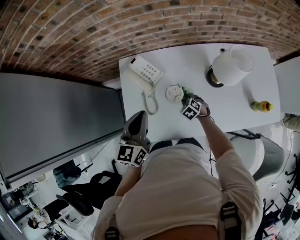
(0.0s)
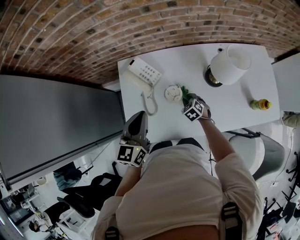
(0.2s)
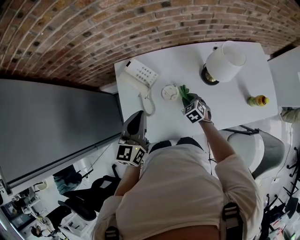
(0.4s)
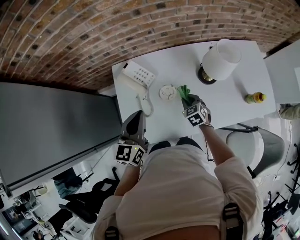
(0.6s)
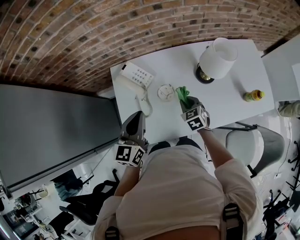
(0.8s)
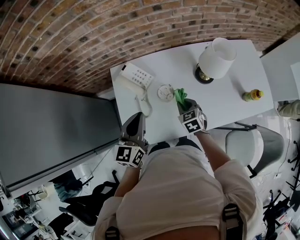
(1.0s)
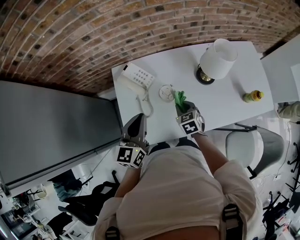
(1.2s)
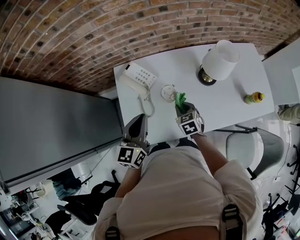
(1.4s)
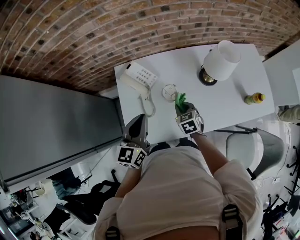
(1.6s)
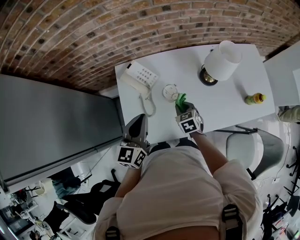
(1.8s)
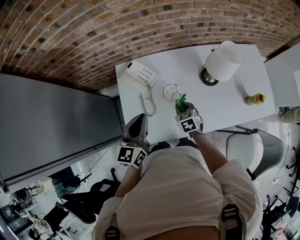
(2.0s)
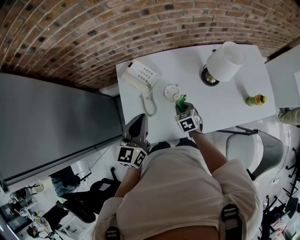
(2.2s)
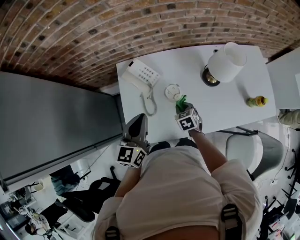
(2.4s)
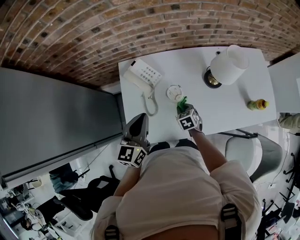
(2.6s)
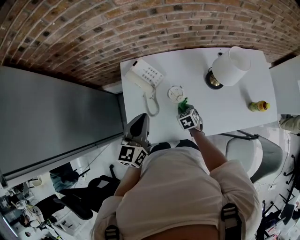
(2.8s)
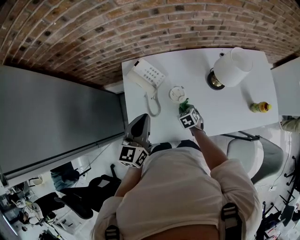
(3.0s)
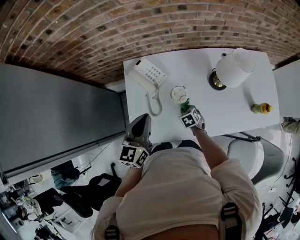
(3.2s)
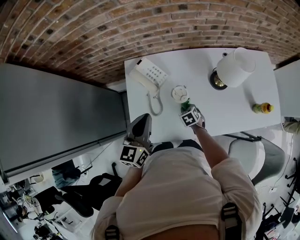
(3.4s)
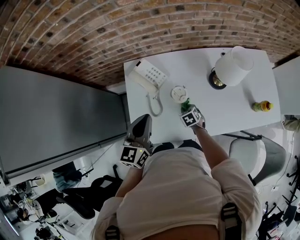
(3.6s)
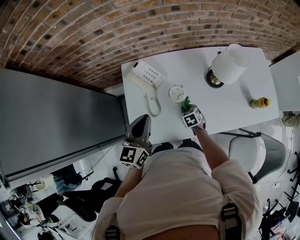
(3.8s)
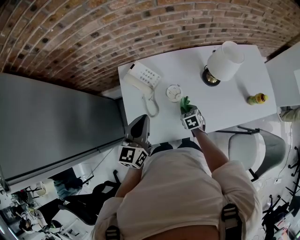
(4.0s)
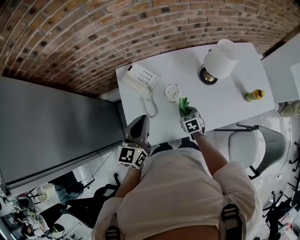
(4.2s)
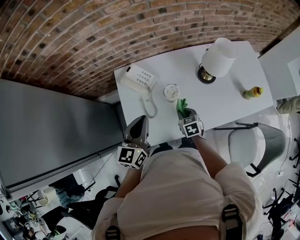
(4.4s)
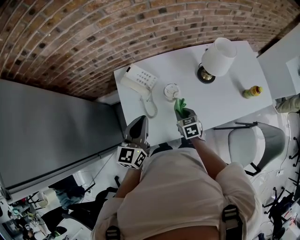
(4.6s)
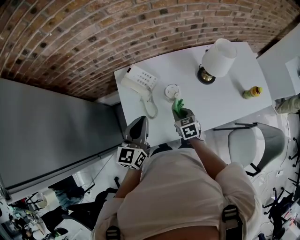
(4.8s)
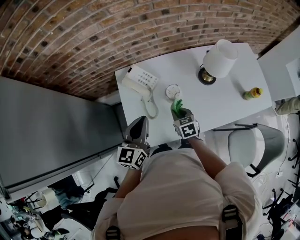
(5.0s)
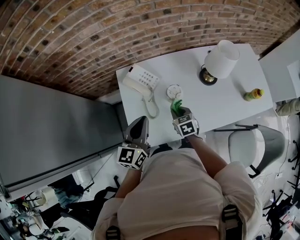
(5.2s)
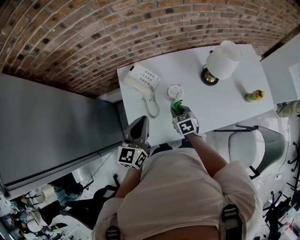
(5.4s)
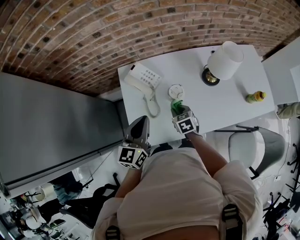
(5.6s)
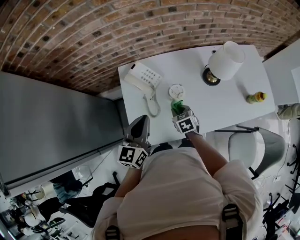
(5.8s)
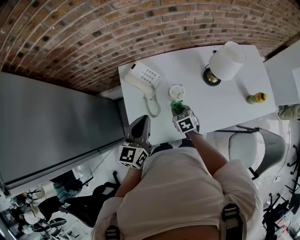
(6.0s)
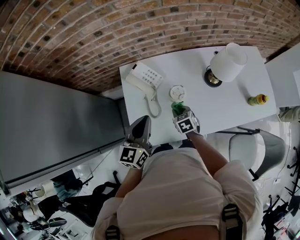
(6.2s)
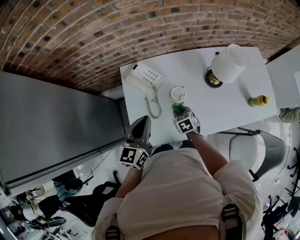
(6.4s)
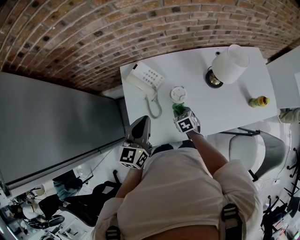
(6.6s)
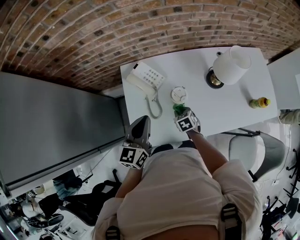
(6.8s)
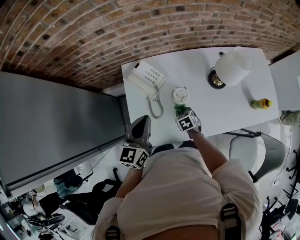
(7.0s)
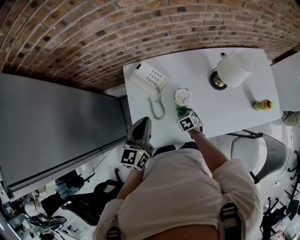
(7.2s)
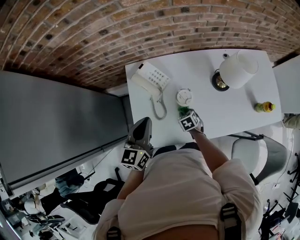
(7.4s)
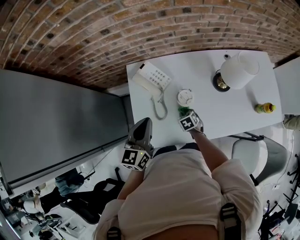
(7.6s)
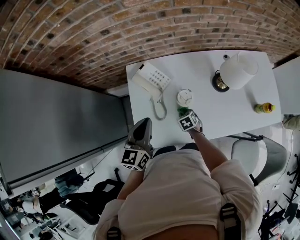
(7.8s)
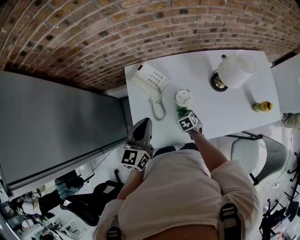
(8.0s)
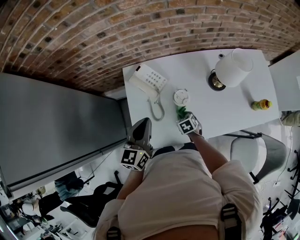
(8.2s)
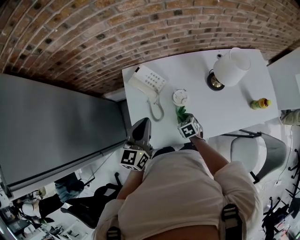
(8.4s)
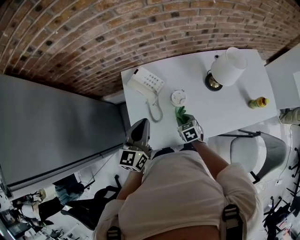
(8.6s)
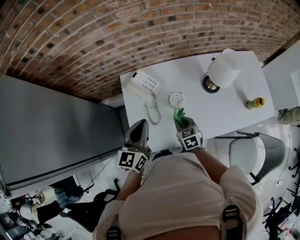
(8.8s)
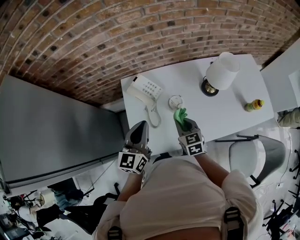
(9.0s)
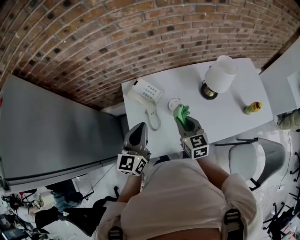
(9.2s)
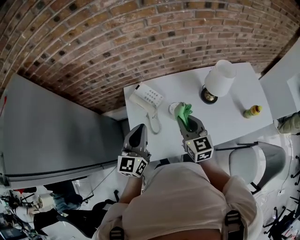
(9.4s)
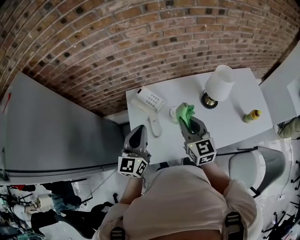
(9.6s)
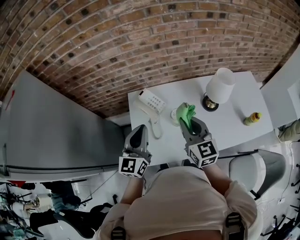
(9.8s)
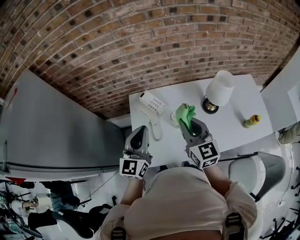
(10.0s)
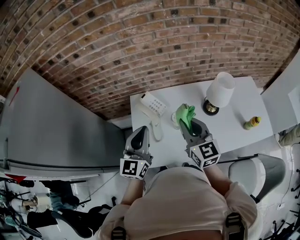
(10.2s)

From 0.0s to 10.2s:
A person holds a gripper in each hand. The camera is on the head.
From 0.0s to 1.4s: The right gripper is displaced upward by approximately 15 cm, and swivels some 30 degrees.
From 1.4s to 3.0s: The right gripper travels downward by some 10 cm.
From 3.0s to 4.4s: The right gripper heads upward, covering about 10 cm.
From 4.4s to 5.8s: The right gripper changes place by about 5 cm.
From 5.8s to 7.2s: The right gripper goes about 10 cm downward.
From 7.2s to 8.8s: The right gripper is displaced upward by about 10 cm.
From 8.8s to 10.2s: The right gripper travels upward by approximately 25 cm, and tips its fingers upward by some 40 degrees; the left gripper shifts about 10 cm upward.

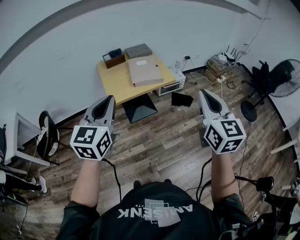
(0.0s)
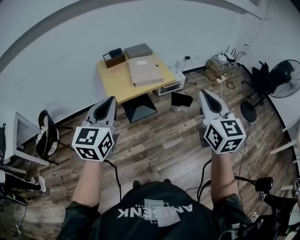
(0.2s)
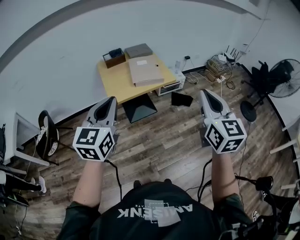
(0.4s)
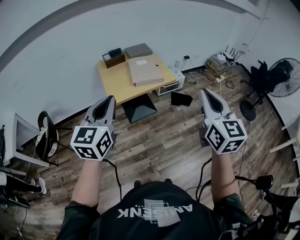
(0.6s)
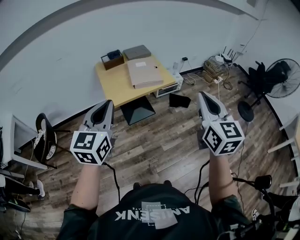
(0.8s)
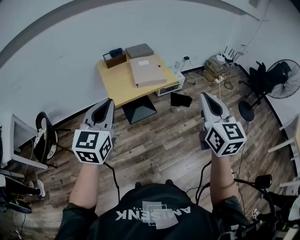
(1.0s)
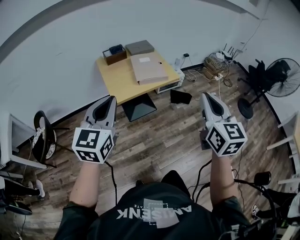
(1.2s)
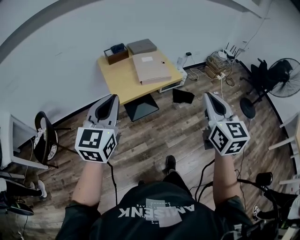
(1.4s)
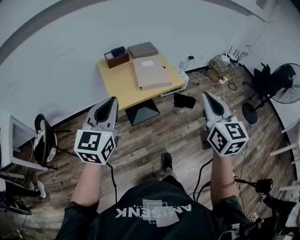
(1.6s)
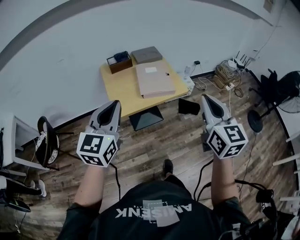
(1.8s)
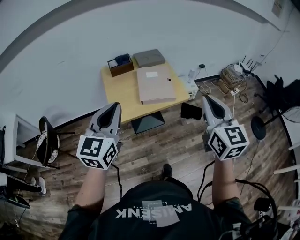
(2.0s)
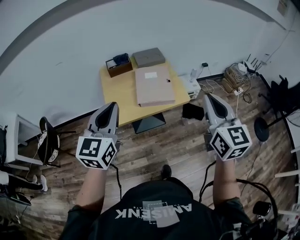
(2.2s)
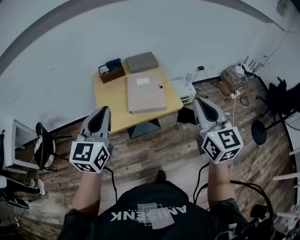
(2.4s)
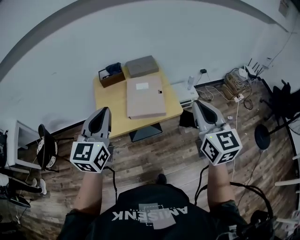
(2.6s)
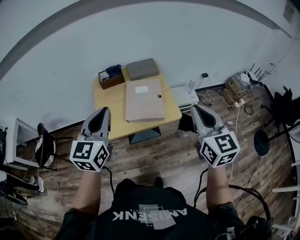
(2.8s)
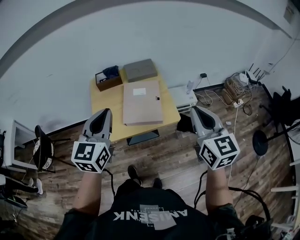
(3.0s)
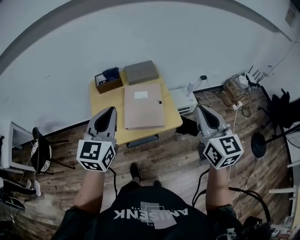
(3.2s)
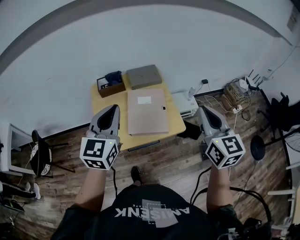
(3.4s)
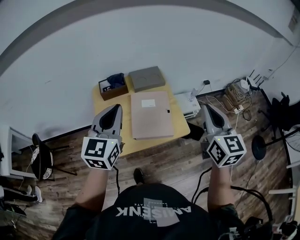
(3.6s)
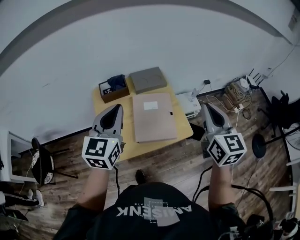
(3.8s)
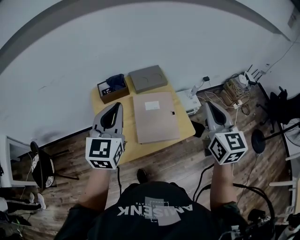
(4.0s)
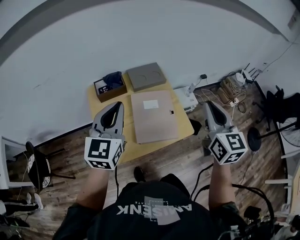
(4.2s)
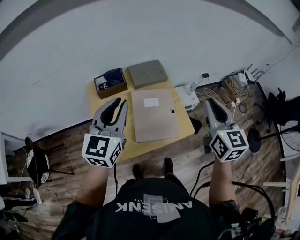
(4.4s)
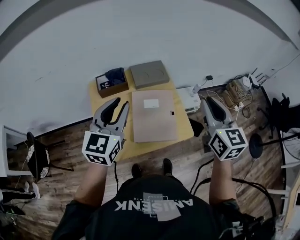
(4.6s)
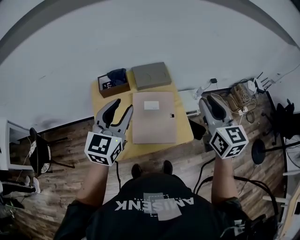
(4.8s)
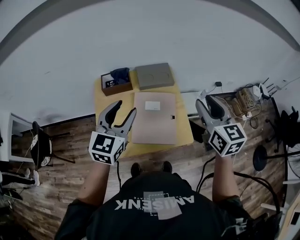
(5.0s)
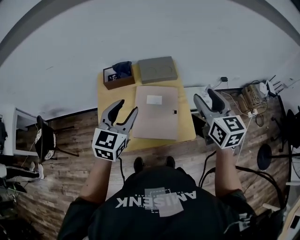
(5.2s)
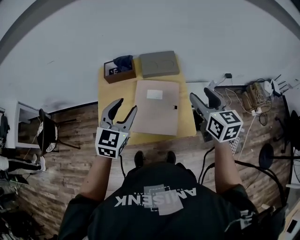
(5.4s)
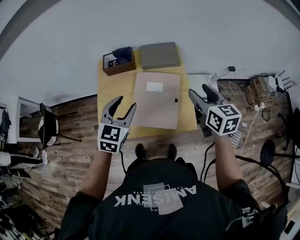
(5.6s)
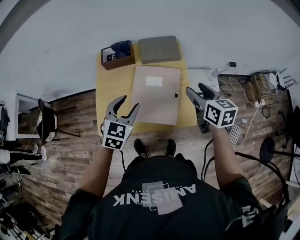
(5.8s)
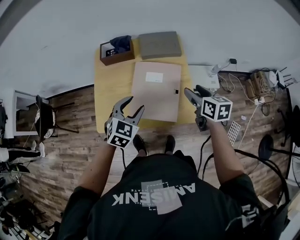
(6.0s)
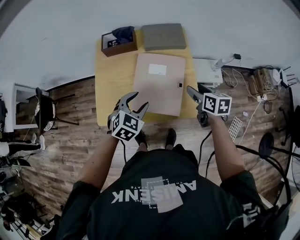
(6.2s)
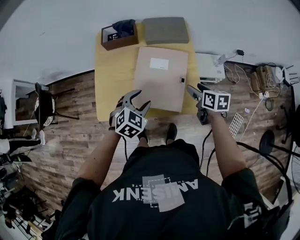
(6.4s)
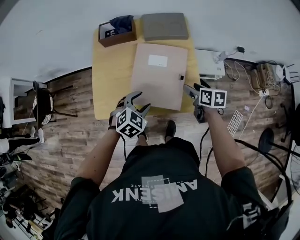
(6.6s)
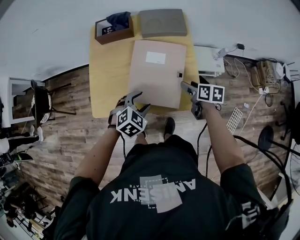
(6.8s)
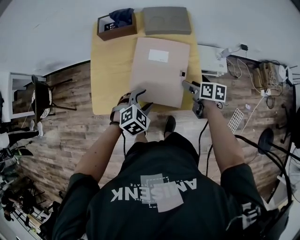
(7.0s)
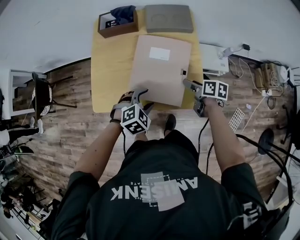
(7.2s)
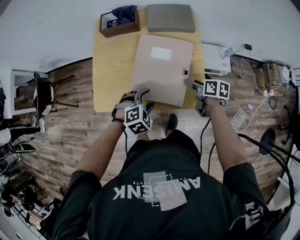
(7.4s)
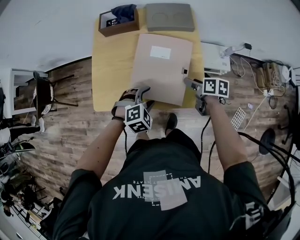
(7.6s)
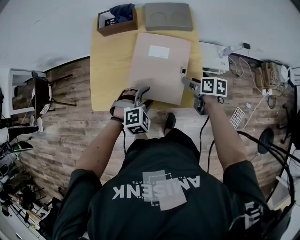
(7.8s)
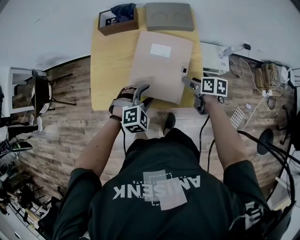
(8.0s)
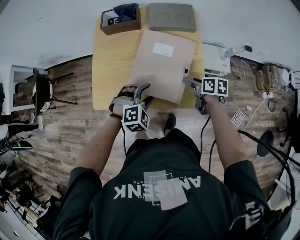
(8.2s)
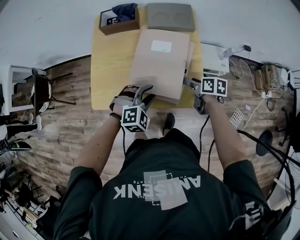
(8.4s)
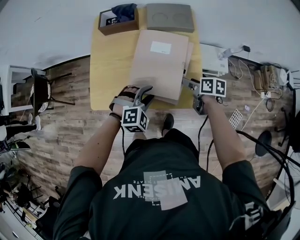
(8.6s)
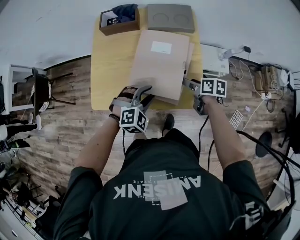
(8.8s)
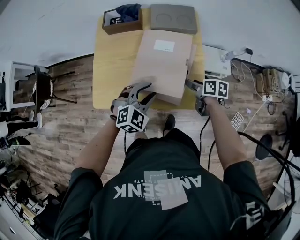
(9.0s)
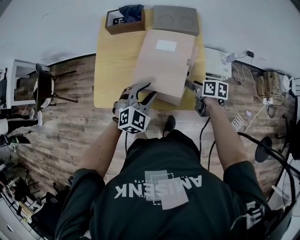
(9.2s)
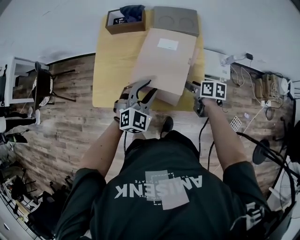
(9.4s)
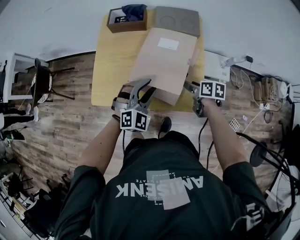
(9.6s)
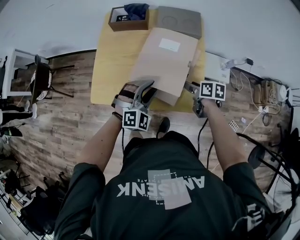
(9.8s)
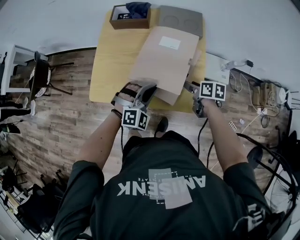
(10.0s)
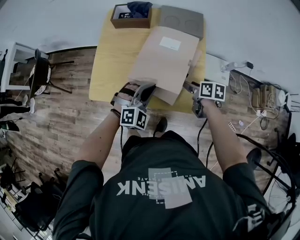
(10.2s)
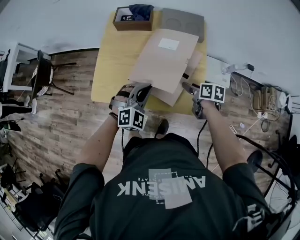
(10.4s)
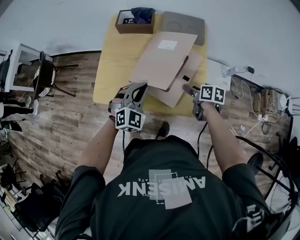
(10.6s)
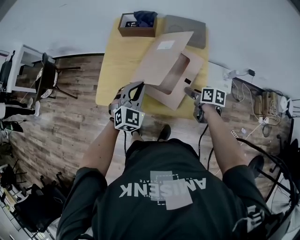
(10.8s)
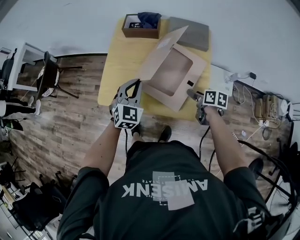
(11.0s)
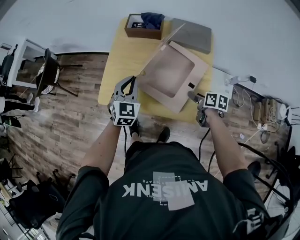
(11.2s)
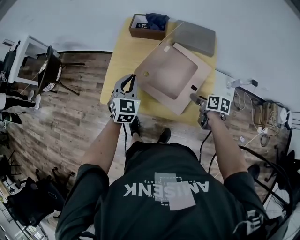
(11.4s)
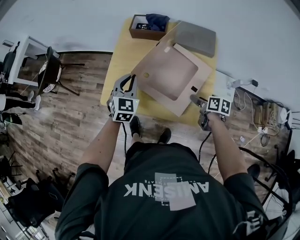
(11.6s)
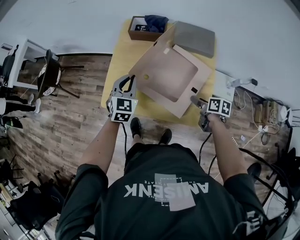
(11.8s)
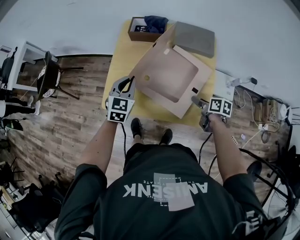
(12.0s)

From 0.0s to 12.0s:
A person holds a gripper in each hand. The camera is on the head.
From 0.0s to 1.6s: The grippers both shift forward and to the left by approximately 10 cm.
From 1.6s to 3.0s: Both grippers move forward and to the right, roughly 30 cm.
From 3.0s to 4.4s: The grippers both shift forward and to the left by approximately 20 cm.
From 4.4s to 6.0s: The left gripper is displaced downward and to the right by roughly 25 cm, points its fingers some 30 degrees further downward, and opens. The right gripper heads downward and forward, covering approximately 25 cm, rotates about 40 degrees, and opens its fingers.
From 6.0s to 7.6s: Both grippers move downward, roughly 15 cm. The left gripper turns by roughly 30 degrees. The right gripper turns by about 30 degrees.
From 7.6s to 9.0s: The left gripper travels upward by roughly 5 cm, and changes its angle by about 20 degrees.
From 9.0s to 10.4s: The left gripper closes up.
From 10.4s to 12.0s: The left gripper shifts approximately 15 cm forward and to the left, and rotates around the line of its fingers by some 40 degrees, counterclockwise from behind.

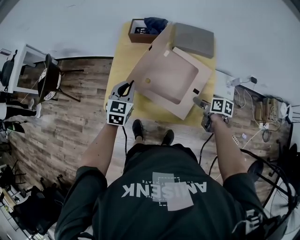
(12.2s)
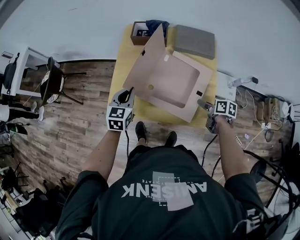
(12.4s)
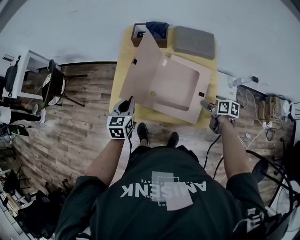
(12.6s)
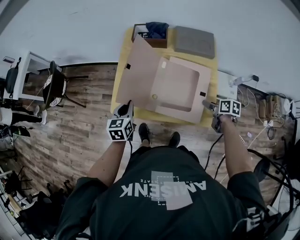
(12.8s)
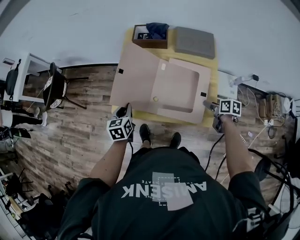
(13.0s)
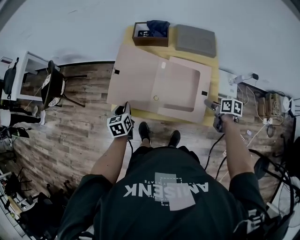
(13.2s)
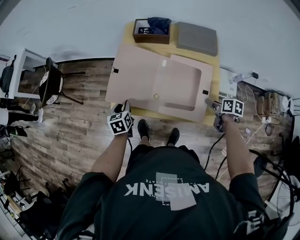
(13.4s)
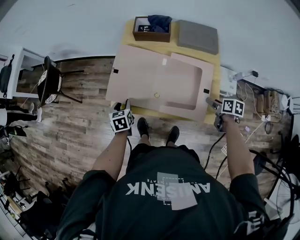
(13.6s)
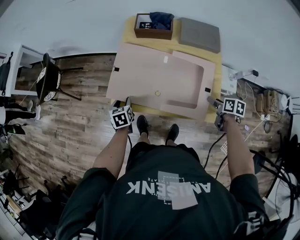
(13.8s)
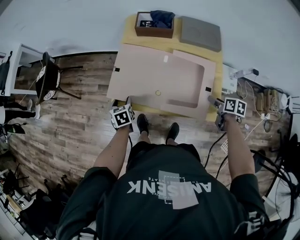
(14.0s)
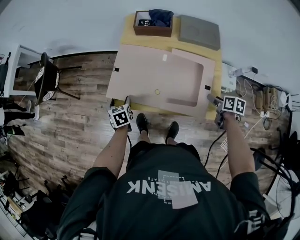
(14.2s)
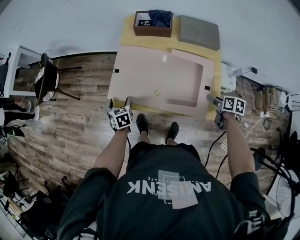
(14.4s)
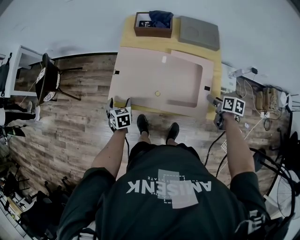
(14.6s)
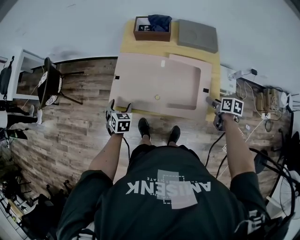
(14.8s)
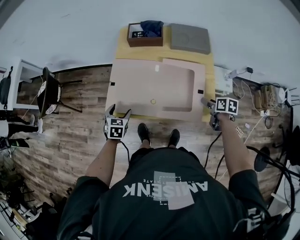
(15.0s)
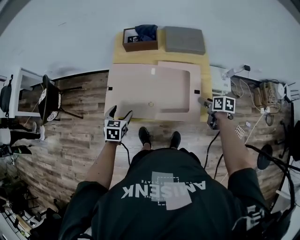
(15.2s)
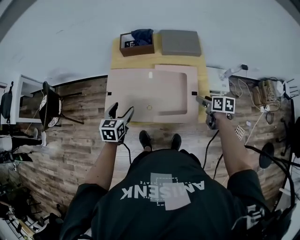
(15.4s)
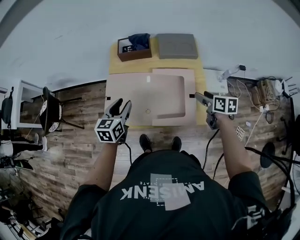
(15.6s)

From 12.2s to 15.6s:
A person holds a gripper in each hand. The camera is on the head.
From 12.2s to 13.8s: The left gripper goes some 20 cm downward and to the left, turns by roughly 40 degrees, and opens its fingers.
From 13.8s to 15.6s: The left gripper is displaced upward and to the right by approximately 20 cm, turns by some 40 degrees, and opens, then closes once more; the right gripper goes roughly 10 cm upward.
